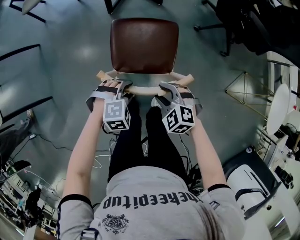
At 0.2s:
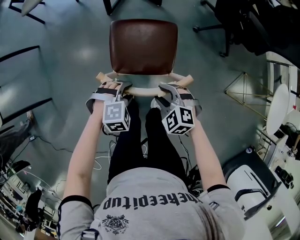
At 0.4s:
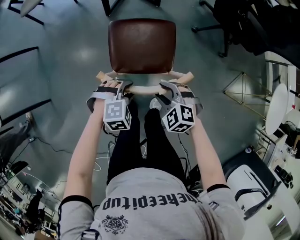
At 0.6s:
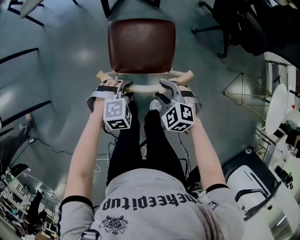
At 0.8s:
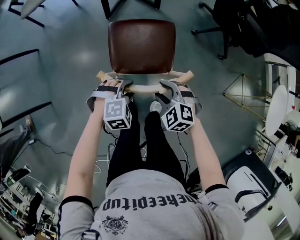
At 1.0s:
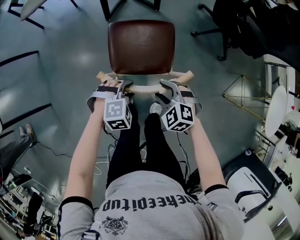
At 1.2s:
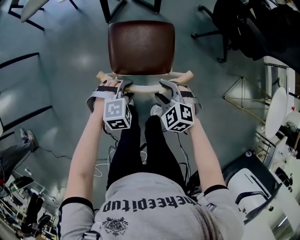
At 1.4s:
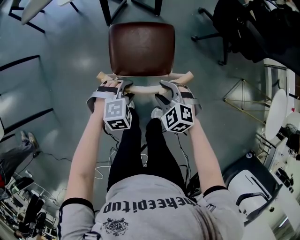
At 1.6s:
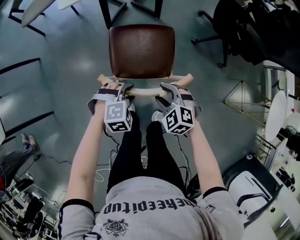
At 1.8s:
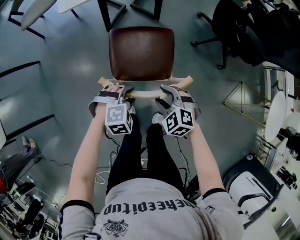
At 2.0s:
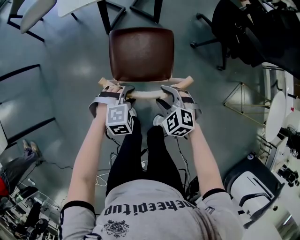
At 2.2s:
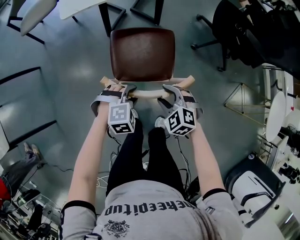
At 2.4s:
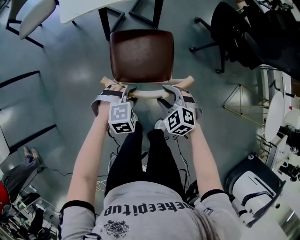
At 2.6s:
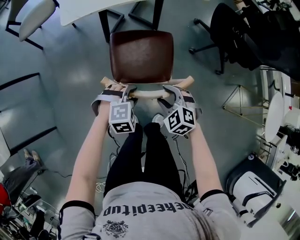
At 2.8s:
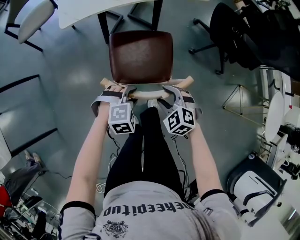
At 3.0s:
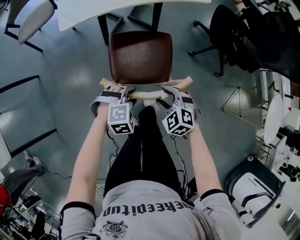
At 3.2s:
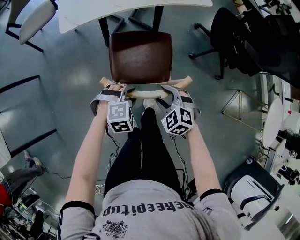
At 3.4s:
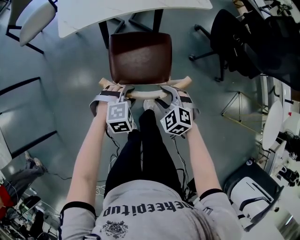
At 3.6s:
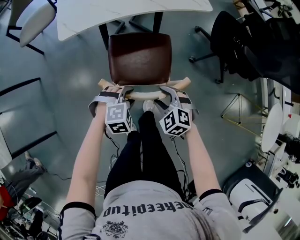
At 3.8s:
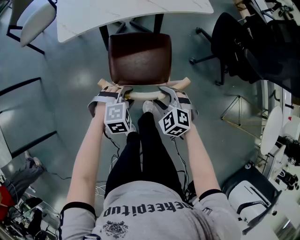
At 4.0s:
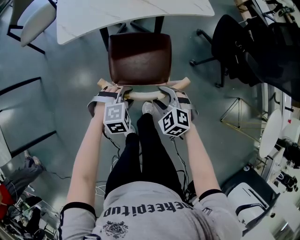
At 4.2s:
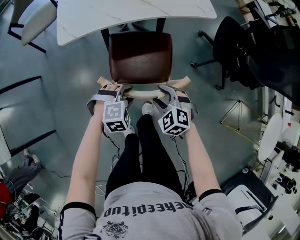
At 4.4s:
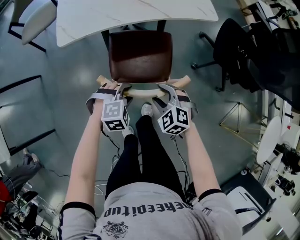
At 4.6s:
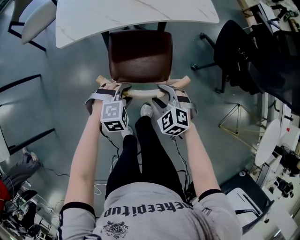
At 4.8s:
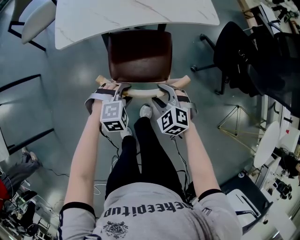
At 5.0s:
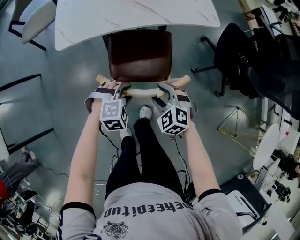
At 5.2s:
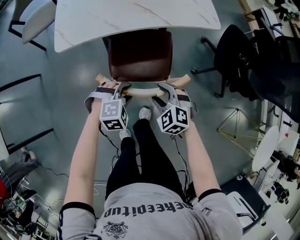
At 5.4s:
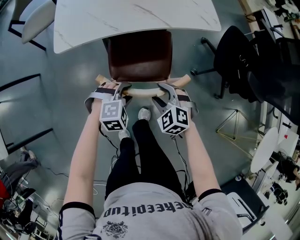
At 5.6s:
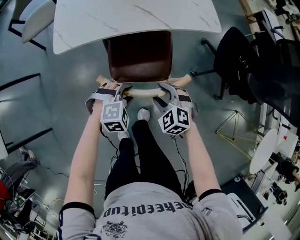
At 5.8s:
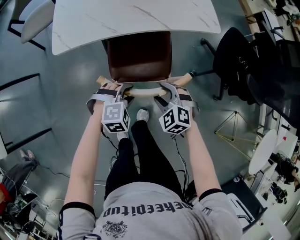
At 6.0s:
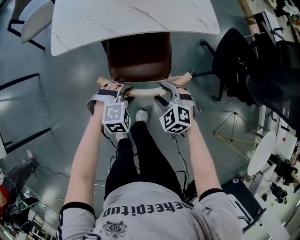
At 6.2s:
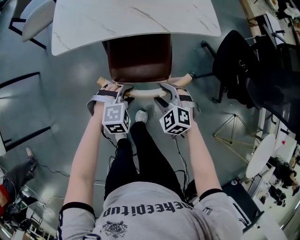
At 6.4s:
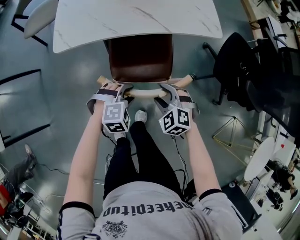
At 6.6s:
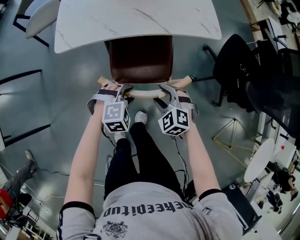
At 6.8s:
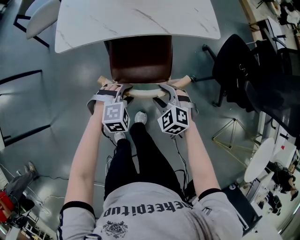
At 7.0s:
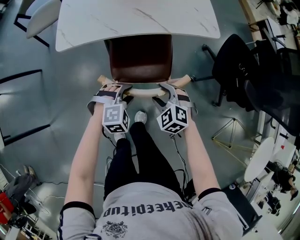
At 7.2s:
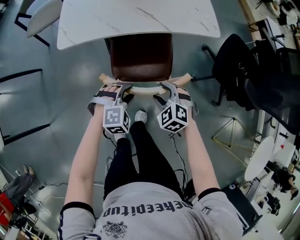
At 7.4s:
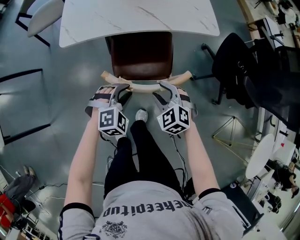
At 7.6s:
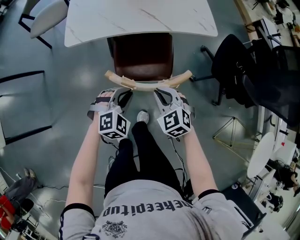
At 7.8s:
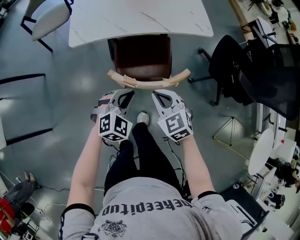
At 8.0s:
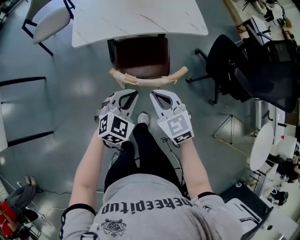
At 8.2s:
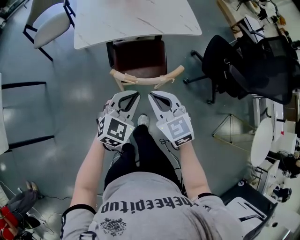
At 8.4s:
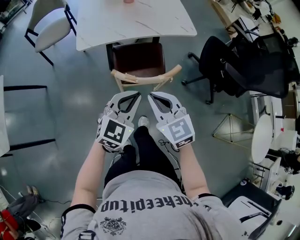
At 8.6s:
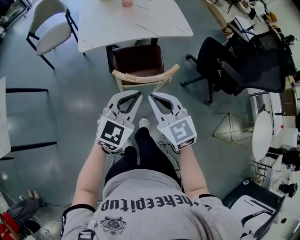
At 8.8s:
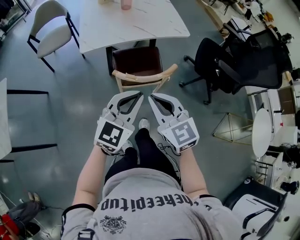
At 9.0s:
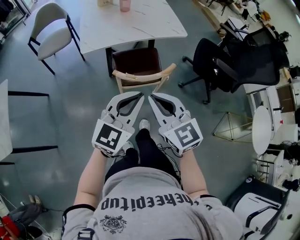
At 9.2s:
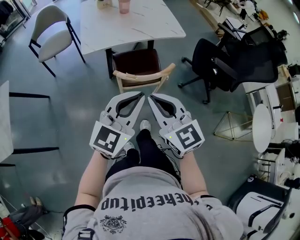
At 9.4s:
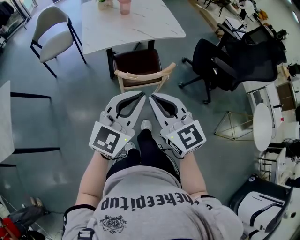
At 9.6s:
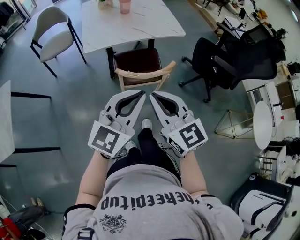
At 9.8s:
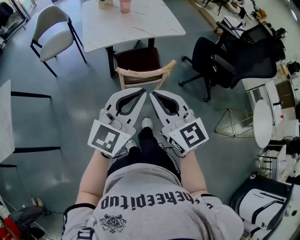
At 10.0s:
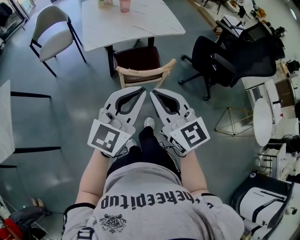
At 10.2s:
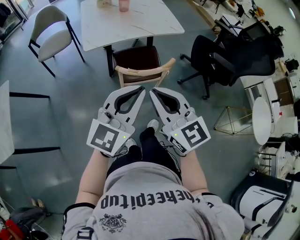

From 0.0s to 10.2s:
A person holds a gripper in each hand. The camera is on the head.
From 0.0s to 1.4s: The grippers both shift forward by some 10 cm.
From 1.4s to 3.0s: Both grippers move forward, some 10 cm.
From 3.0s to 4.4s: The two grippers go some 10 cm forward.
From 4.4s to 5.8s: The two grippers go approximately 5 cm forward.
From 5.8s to 7.2s: The grippers move only a little.
From 7.2s to 8.8s: The two grippers go some 35 cm upward and backward. The right gripper tilts its fingers about 40 degrees upward, and closes. Meanwhile the left gripper angles its fingers upward, by some 50 degrees, and closes up.
From 8.8s to 10.2s: The two grippers go about 10 cm upward and backward.

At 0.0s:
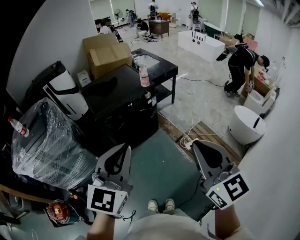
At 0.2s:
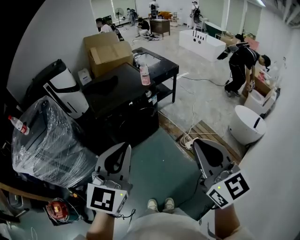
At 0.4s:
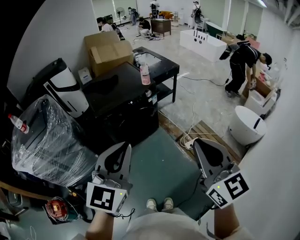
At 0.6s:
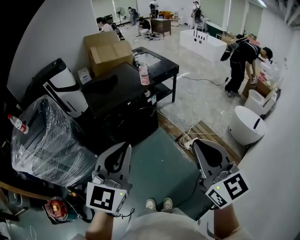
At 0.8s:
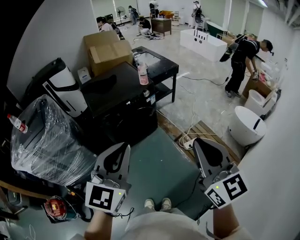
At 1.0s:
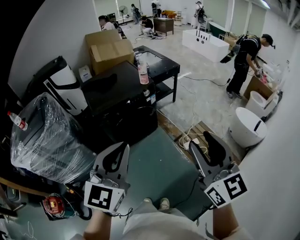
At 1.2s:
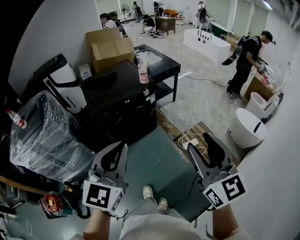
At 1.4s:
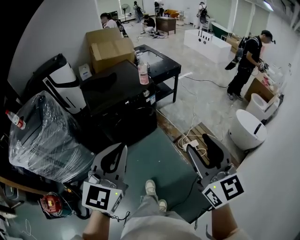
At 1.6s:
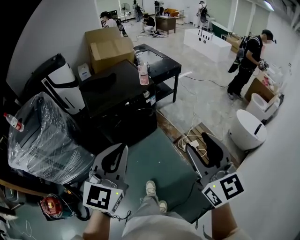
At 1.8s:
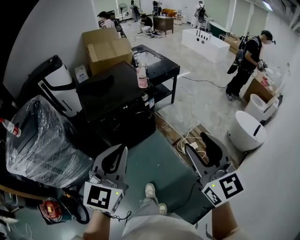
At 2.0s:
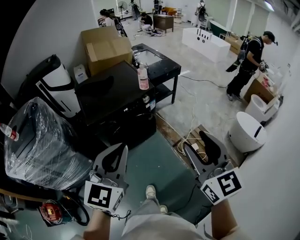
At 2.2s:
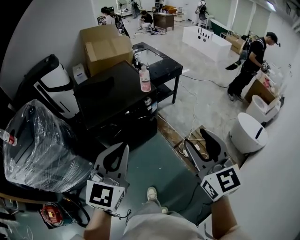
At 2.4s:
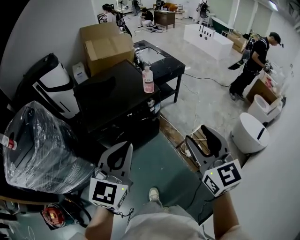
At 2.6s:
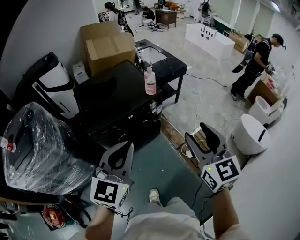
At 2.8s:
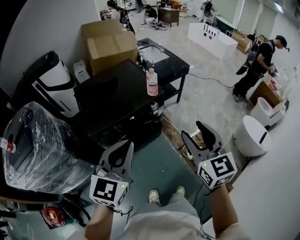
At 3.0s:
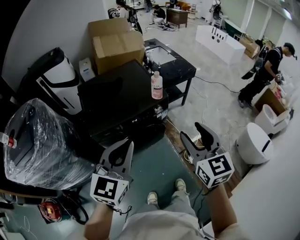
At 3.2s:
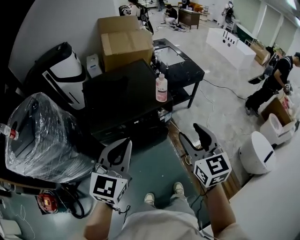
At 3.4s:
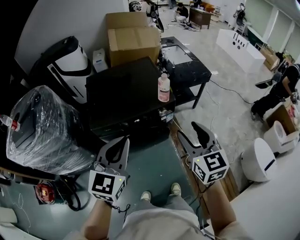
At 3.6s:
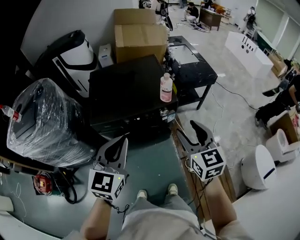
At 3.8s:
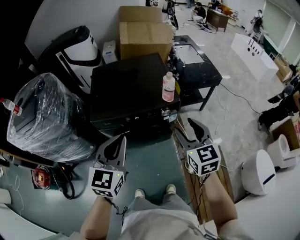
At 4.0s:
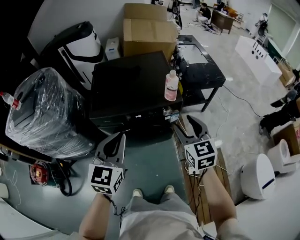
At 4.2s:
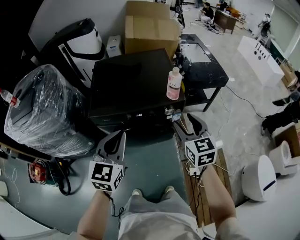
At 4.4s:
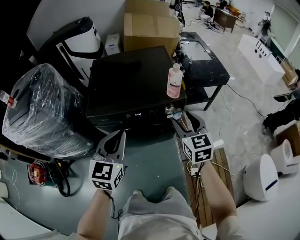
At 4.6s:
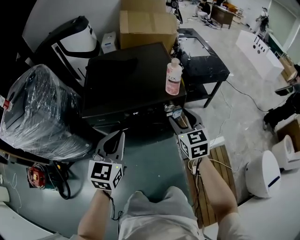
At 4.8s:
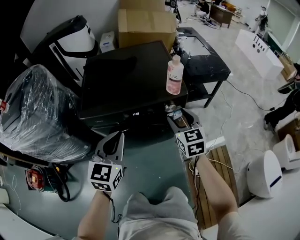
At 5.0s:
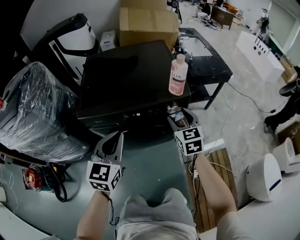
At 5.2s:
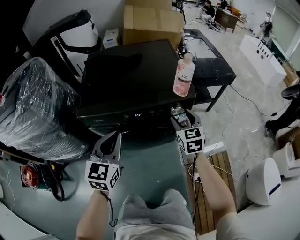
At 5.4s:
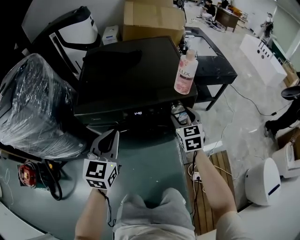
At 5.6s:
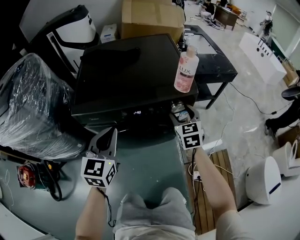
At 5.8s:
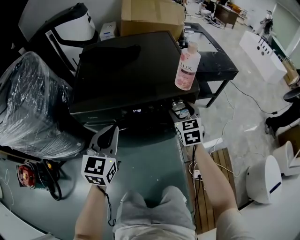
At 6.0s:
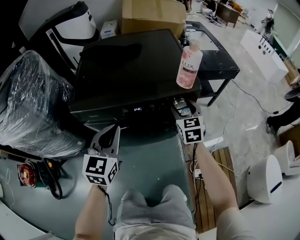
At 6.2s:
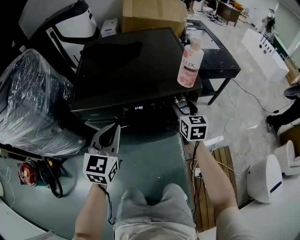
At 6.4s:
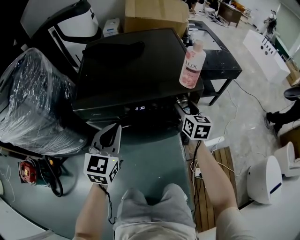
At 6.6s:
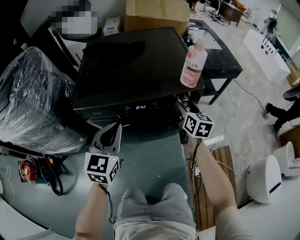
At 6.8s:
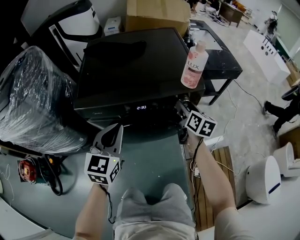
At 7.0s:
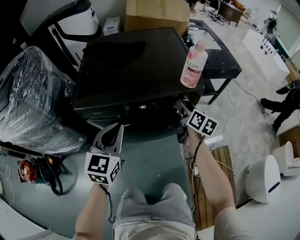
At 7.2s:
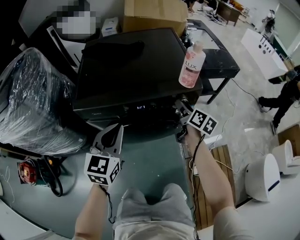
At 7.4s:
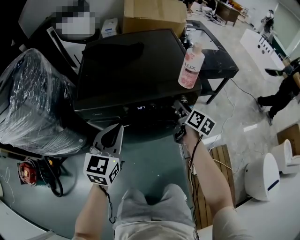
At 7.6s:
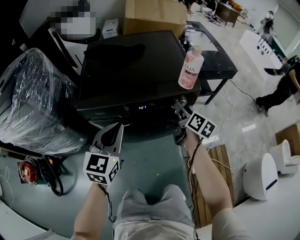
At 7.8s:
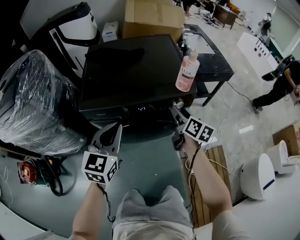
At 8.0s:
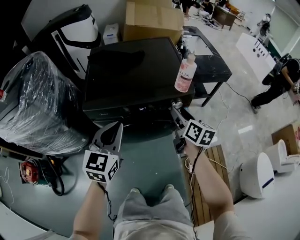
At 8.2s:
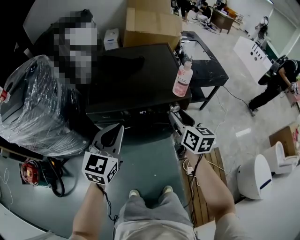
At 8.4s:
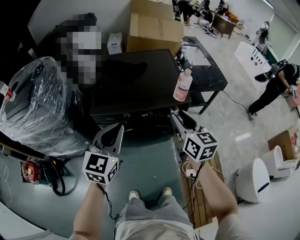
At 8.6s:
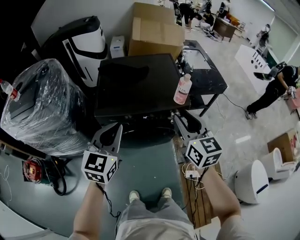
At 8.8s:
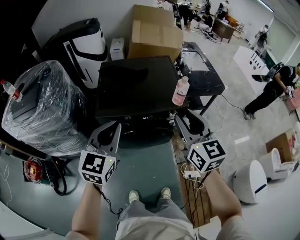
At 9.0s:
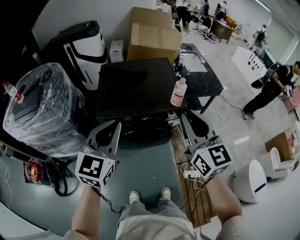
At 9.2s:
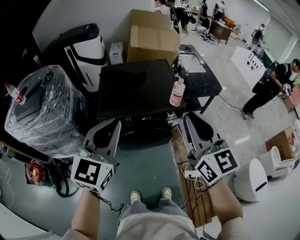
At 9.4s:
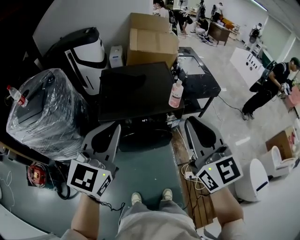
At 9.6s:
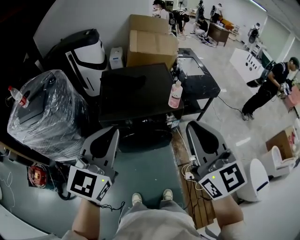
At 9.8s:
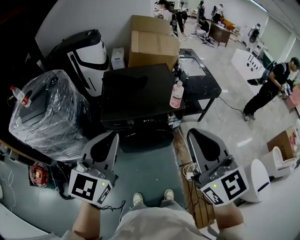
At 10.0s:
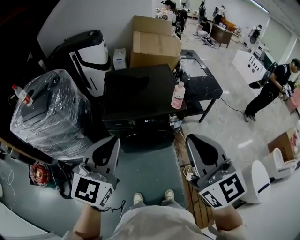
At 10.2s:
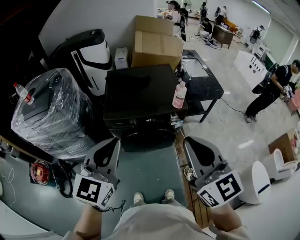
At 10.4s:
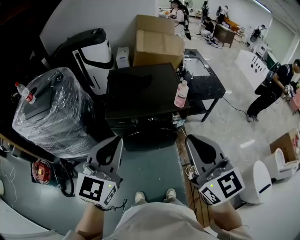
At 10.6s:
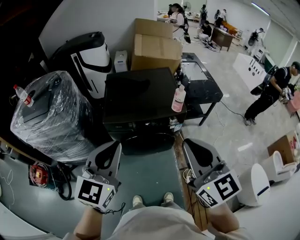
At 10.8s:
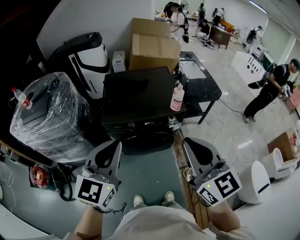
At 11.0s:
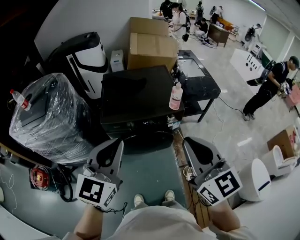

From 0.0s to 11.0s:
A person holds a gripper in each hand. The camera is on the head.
From 0.0s to 1.6s: The two grippers go roughly 5 cm forward. The right gripper opens up.
From 1.6s to 3.2s: The grippers both shift forward by about 30 cm.
From 3.2s to 4.8s: Both grippers travel together downward and forward, some 25 cm.
From 4.8s to 6.2s: The two grippers go approximately 15 cm downward and forward.
From 6.2s to 7.8s: The right gripper shifts approximately 5 cm upward and backward, and swivels roughly 40 degrees. The left gripper moves upward, roughly 5 cm.
From 7.8s to 9.4s: Both grippers travel together upward and backward, some 40 cm. The right gripper rolls counterclockwise, seen from behind, by about 50 degrees, and closes up.
From 9.4s to 11.0s: The right gripper changes place by approximately 5 cm.

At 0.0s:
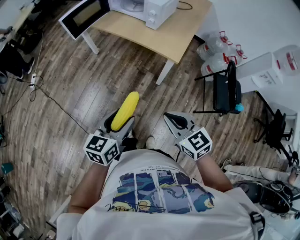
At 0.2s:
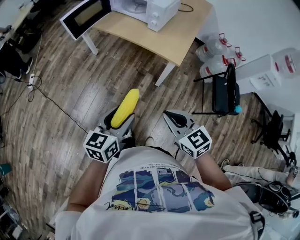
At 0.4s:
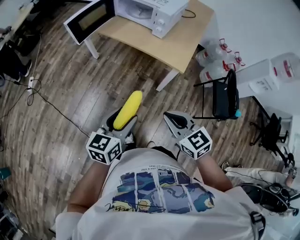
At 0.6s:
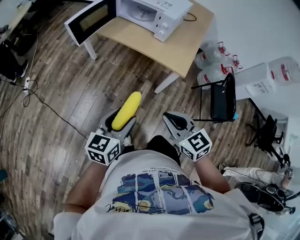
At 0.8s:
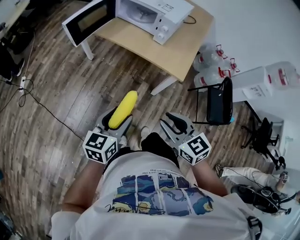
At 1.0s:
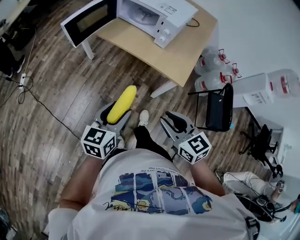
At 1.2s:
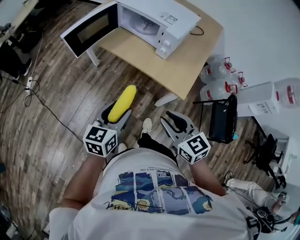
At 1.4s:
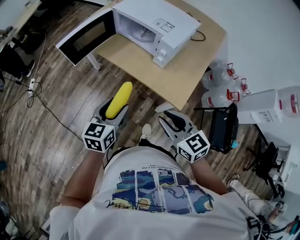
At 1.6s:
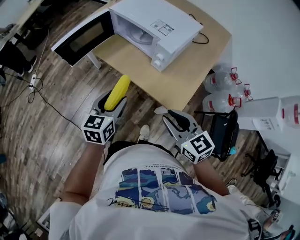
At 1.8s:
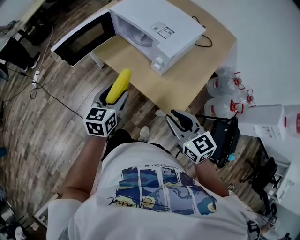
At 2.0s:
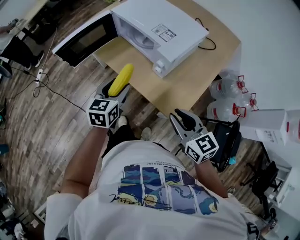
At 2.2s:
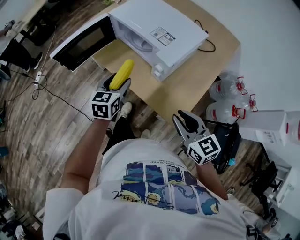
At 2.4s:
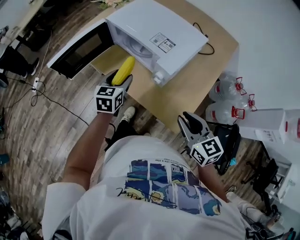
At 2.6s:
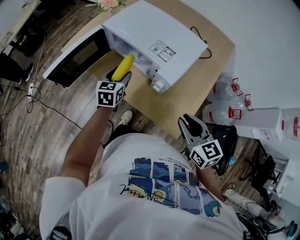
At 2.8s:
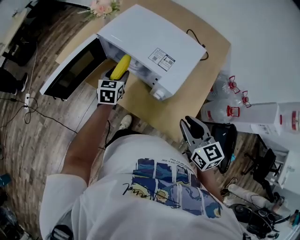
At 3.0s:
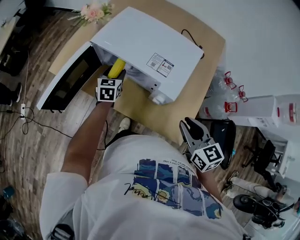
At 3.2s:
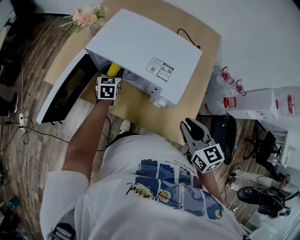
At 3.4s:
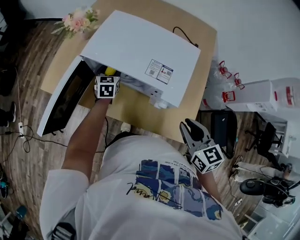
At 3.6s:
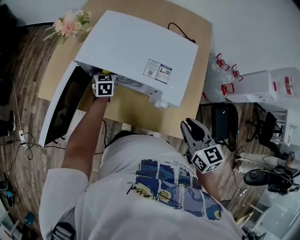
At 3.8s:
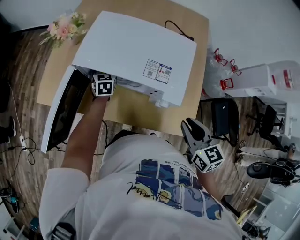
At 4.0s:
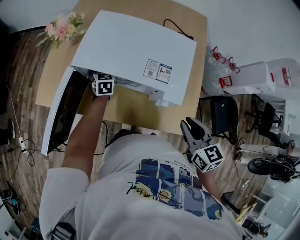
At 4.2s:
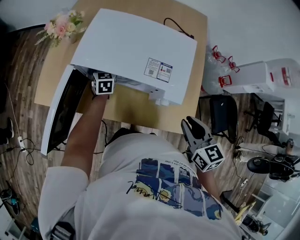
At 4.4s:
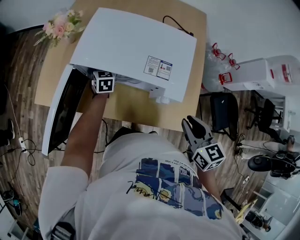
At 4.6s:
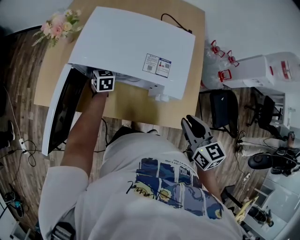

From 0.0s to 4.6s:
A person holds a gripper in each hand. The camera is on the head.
From 0.0s to 1.6s: The two grippers go approximately 35 cm forward.
From 1.6s to 3.0s: The right gripper moves forward, roughly 15 cm, and rotates about 20 degrees, while the left gripper is displaced forward by approximately 35 cm.
From 3.0s to 4.6s: The left gripper moves forward and downward, some 15 cm. The right gripper changes its angle by roughly 20 degrees.
